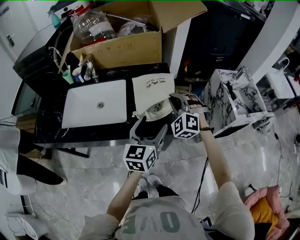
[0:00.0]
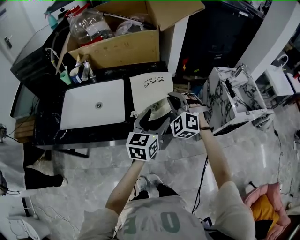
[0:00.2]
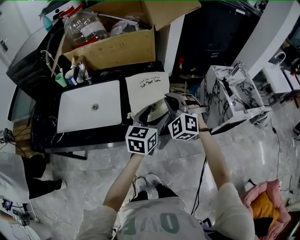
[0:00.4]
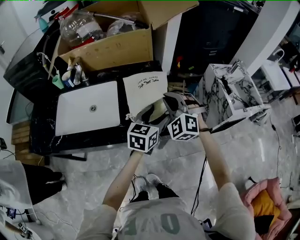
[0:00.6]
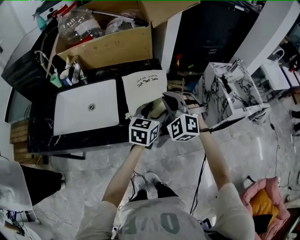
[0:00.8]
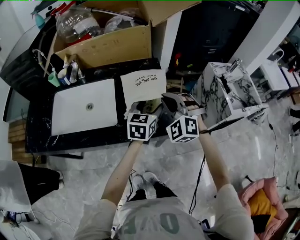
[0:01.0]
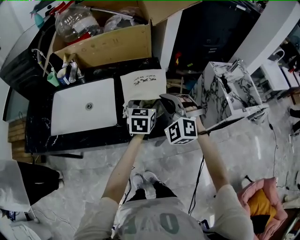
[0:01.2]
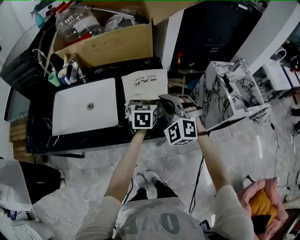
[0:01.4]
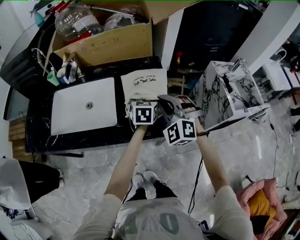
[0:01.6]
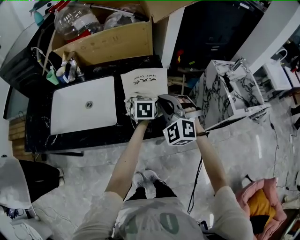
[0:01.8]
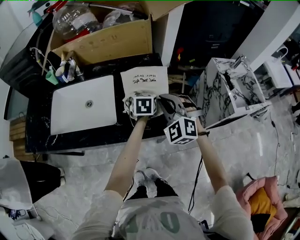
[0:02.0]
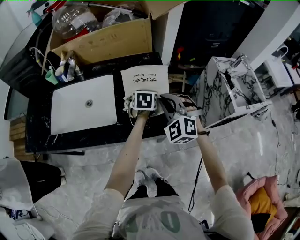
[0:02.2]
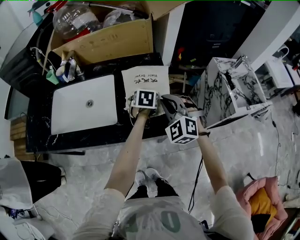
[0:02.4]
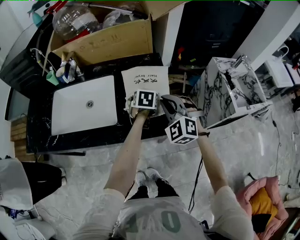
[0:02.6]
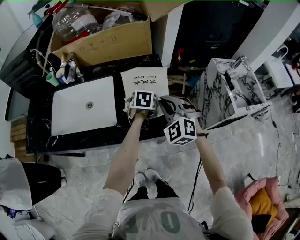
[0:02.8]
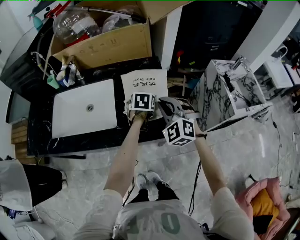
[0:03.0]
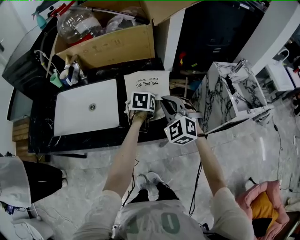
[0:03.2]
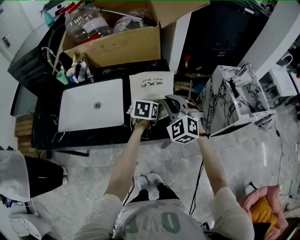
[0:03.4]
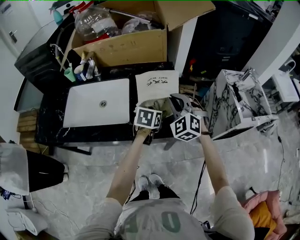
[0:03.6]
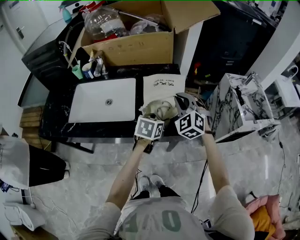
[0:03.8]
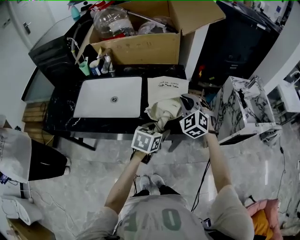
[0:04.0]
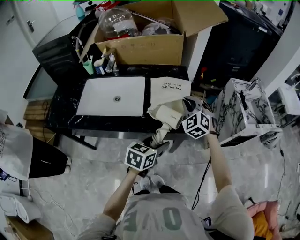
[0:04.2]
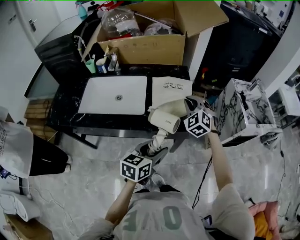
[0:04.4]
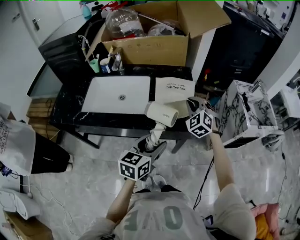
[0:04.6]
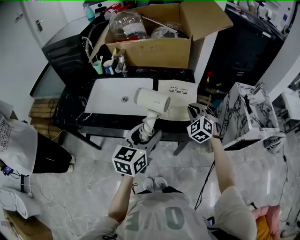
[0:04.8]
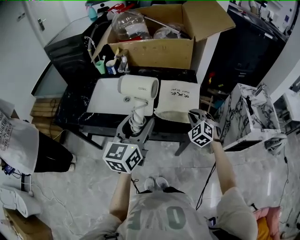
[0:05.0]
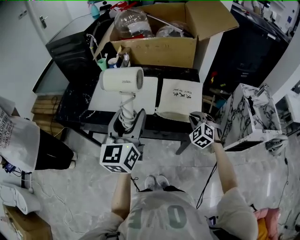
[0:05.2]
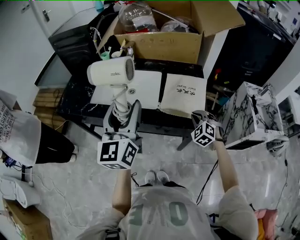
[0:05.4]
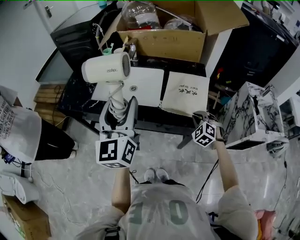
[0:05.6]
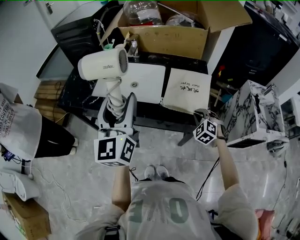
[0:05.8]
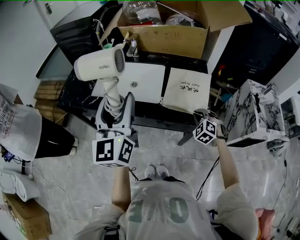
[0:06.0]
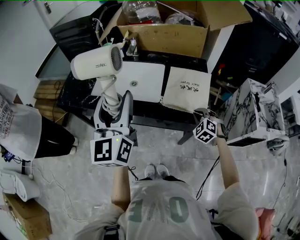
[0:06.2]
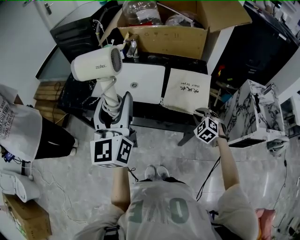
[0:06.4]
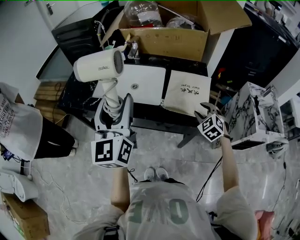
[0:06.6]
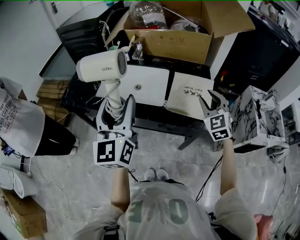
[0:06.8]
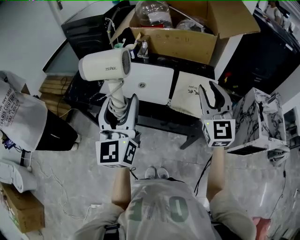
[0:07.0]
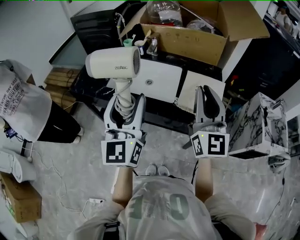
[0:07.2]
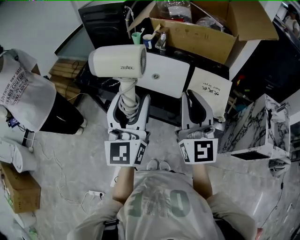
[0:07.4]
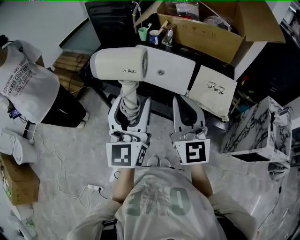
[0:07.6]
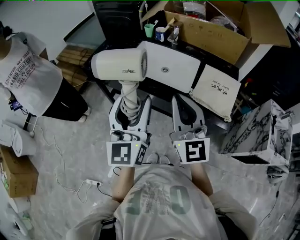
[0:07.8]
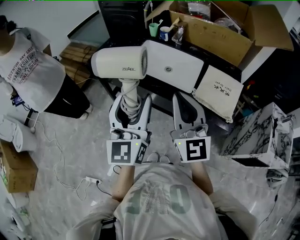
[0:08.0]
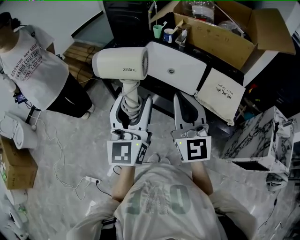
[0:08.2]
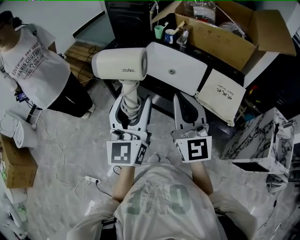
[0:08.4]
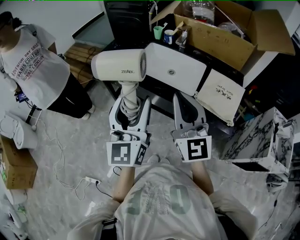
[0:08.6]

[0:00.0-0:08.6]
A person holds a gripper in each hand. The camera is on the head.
0:00.0 to 0:01.4: The left gripper moves forward and downward, about 20 cm, and swivels approximately 20 degrees.
0:01.4 to 0:02.8: The left gripper travels downward by some 5 cm, and rotates approximately 20 degrees.
0:02.8 to 0:04.4: The left gripper shifts roughly 30 cm backward, and changes its angle by about 30 degrees.
0:04.4 to 0:05.8: The right gripper heads downward, covering about 10 cm, while the left gripper shifts roughly 20 cm upward, and points its fingers about 30 degrees further upward.
0:05.8 to 0:07.2: The right gripper is displaced upward by some 30 cm, and points its fingers roughly 60 degrees further upward.
0:07.2 to 0:08.6: The left gripper heads to the left, covering about 5 cm; the right gripper heads to the left, covering approximately 15 cm, and changes its angle by roughly 20 degrees.

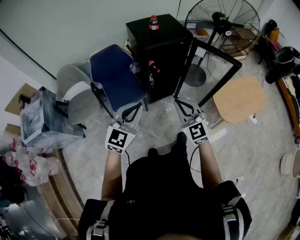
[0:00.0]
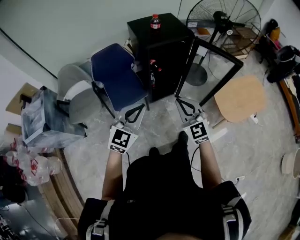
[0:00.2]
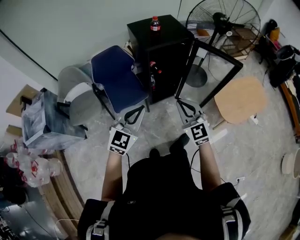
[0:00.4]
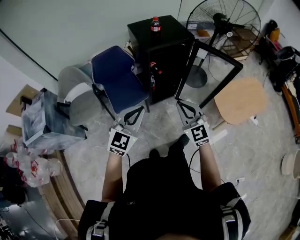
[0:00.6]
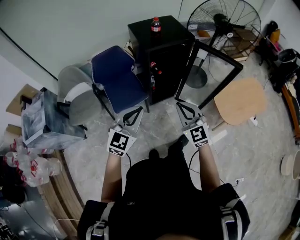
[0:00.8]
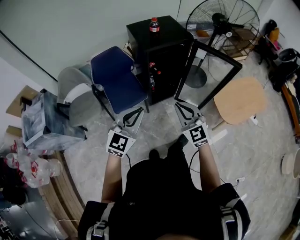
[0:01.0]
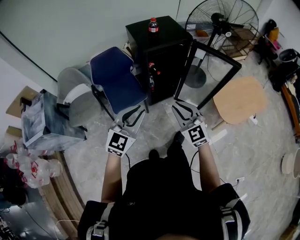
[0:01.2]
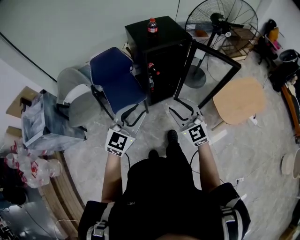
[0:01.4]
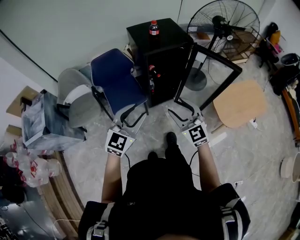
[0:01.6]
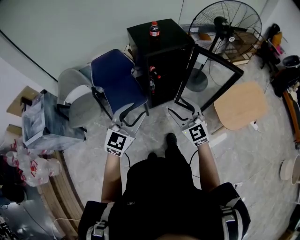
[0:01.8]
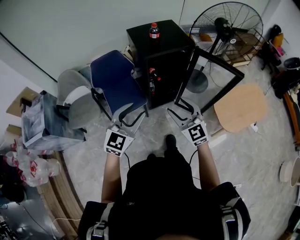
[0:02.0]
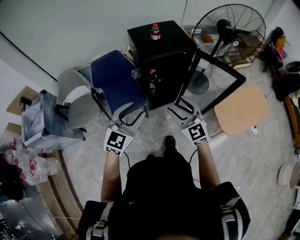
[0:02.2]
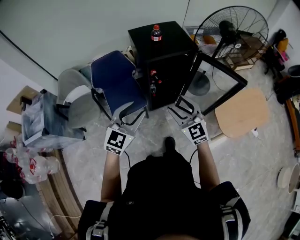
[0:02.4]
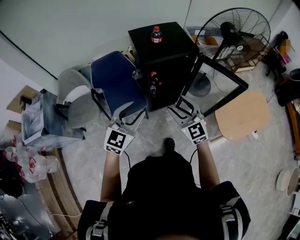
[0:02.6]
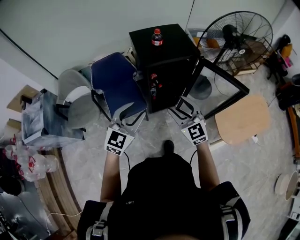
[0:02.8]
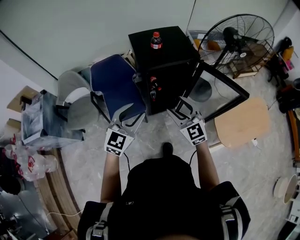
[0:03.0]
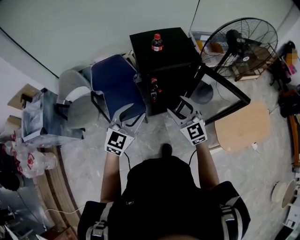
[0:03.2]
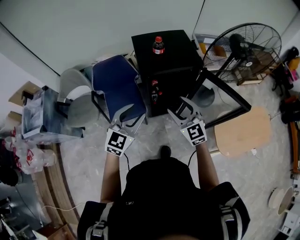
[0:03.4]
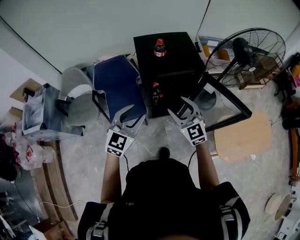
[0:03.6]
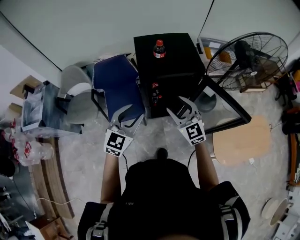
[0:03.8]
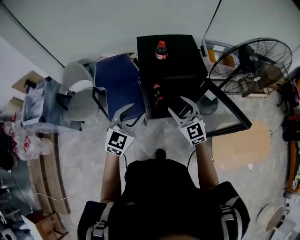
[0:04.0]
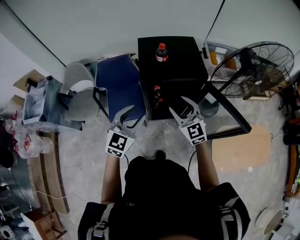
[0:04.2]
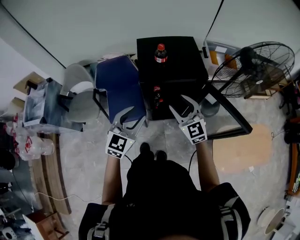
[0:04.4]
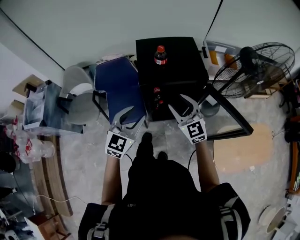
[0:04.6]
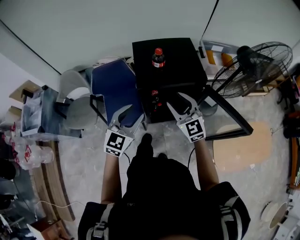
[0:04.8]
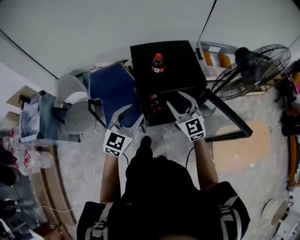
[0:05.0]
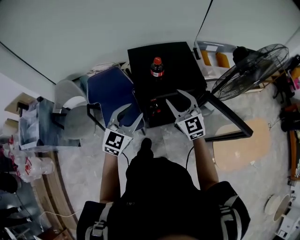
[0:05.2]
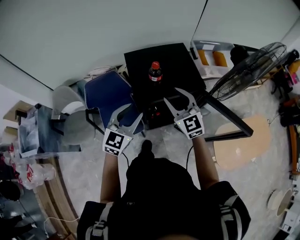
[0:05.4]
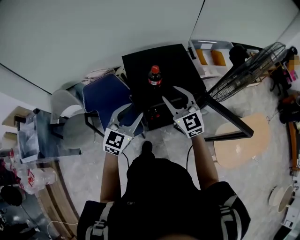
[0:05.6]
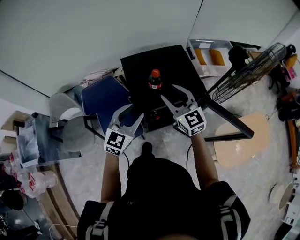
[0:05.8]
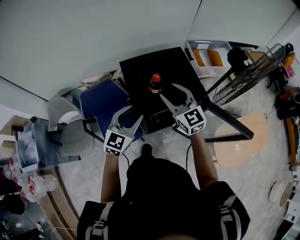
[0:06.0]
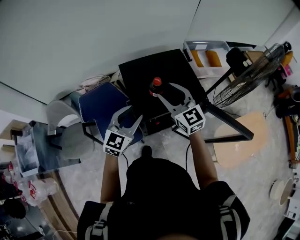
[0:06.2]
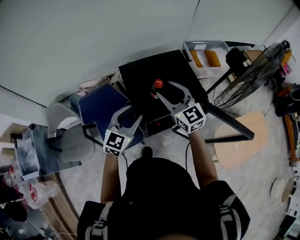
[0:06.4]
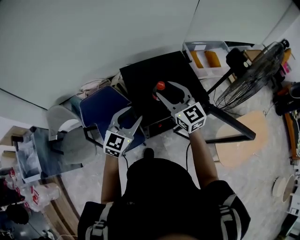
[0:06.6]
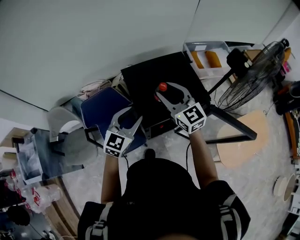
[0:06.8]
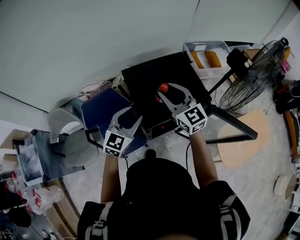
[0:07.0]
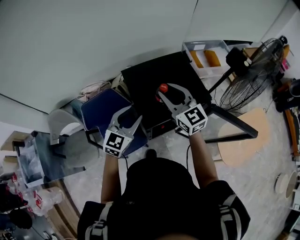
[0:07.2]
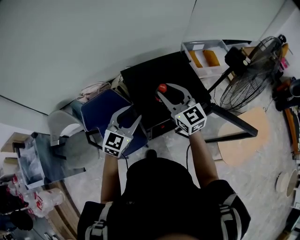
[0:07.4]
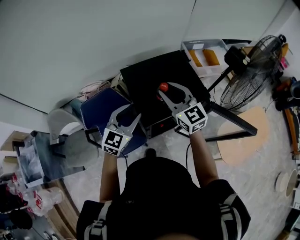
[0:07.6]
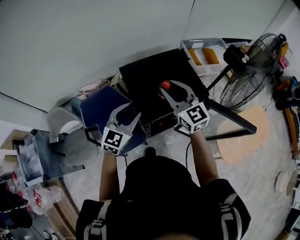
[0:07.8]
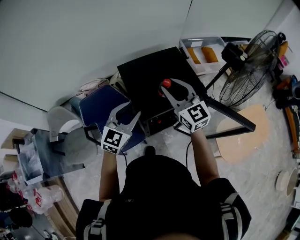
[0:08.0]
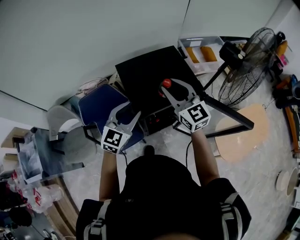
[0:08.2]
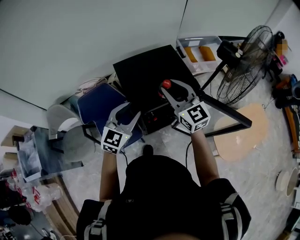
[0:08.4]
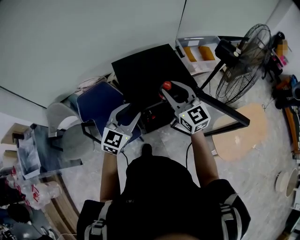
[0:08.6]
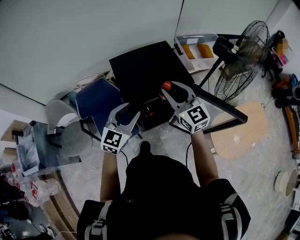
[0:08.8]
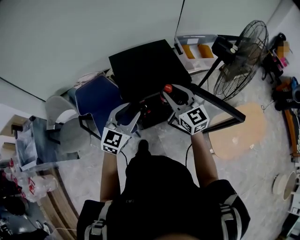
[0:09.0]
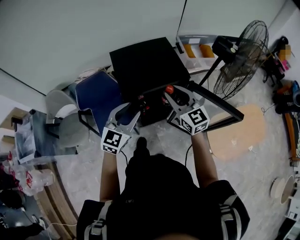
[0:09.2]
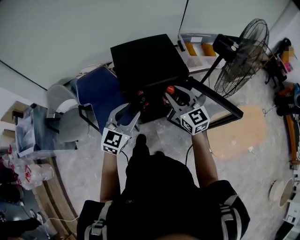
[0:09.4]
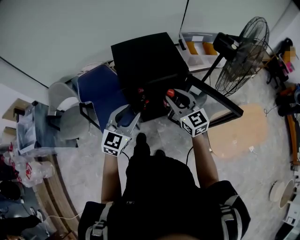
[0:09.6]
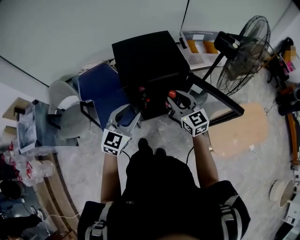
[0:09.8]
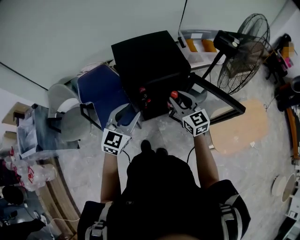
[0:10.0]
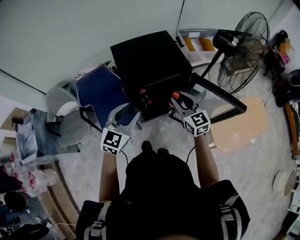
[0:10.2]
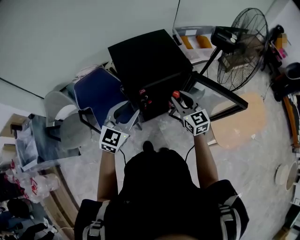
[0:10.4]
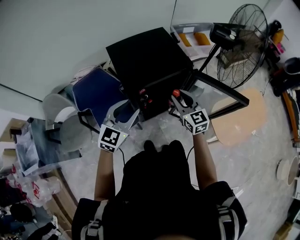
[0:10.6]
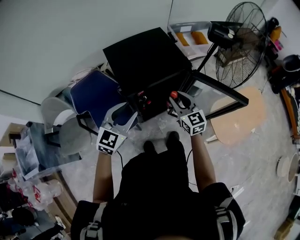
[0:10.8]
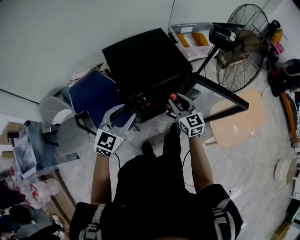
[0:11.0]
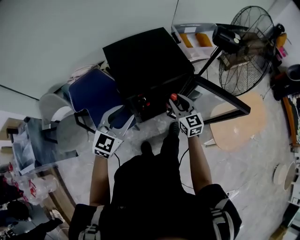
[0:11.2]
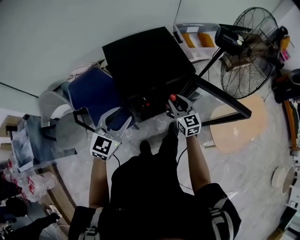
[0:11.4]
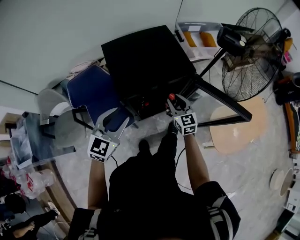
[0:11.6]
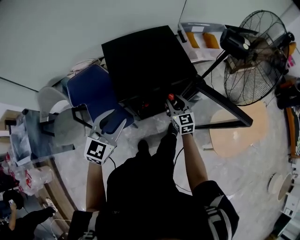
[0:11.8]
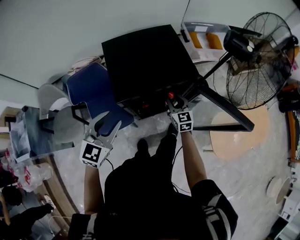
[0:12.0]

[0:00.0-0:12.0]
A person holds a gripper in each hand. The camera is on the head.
0:00.0 to 0:01.6: The right gripper opens up, while the left gripper opens.
0:01.6 to 0:03.0: The two grippers go about 15 cm forward.
0:03.0 to 0:04.4: The right gripper shifts approximately 10 cm forward. Meanwhile the left gripper moves forward, approximately 10 cm.
0:04.4 to 0:06.0: Both grippers travel together forward, about 20 cm.
0:06.0 to 0:07.6: The left gripper changes place by roughly 5 cm.
0:07.6 to 0:09.0: The right gripper is displaced to the right and backward by approximately 15 cm. Meanwhile the left gripper travels backward and to the right by approximately 15 cm.
0:09.0 to 0:10.4: The right gripper travels downward by about 10 cm.
0:10.4 to 0:12.0: The left gripper moves approximately 5 cm. The right gripper shifts roughly 20 cm downward and forward.

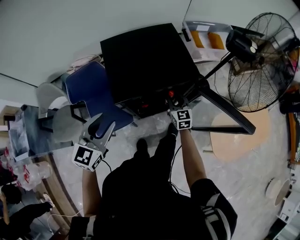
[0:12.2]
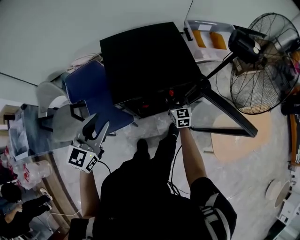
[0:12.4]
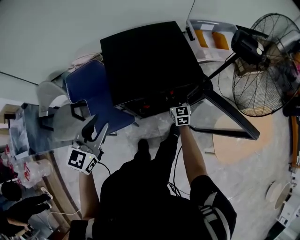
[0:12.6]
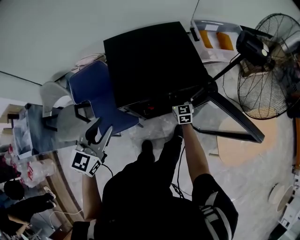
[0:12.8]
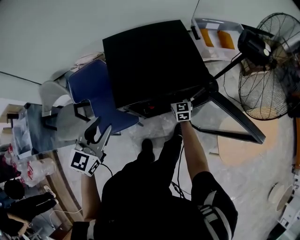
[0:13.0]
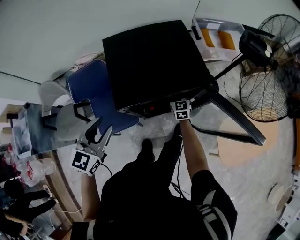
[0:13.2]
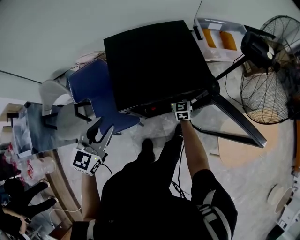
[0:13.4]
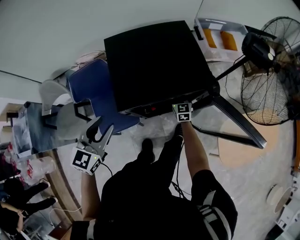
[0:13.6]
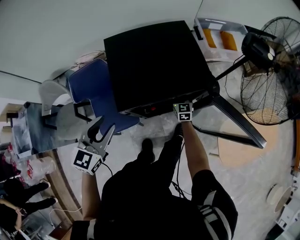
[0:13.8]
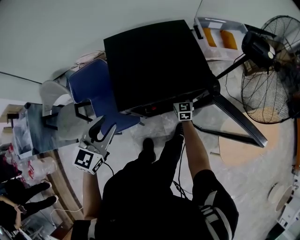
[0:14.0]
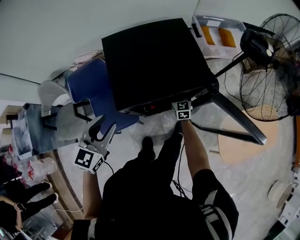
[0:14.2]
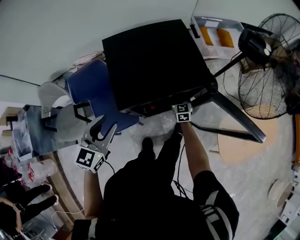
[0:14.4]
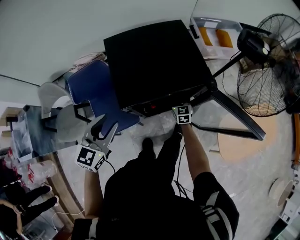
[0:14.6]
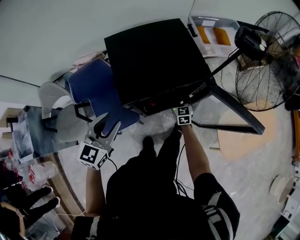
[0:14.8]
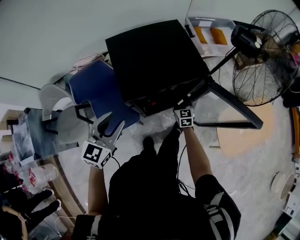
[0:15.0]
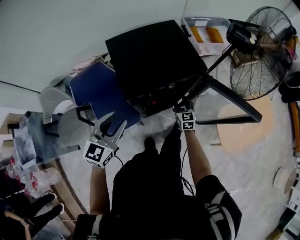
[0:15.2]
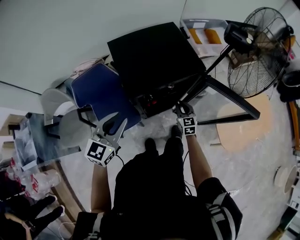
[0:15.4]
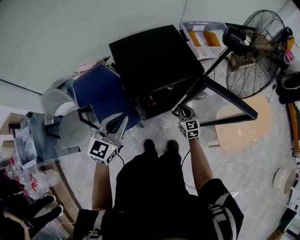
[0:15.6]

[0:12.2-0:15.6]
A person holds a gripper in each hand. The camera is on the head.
0:12.2 to 0:13.8: The right gripper is displaced downward and forward by some 10 cm.
0:13.8 to 0:15.6: The right gripper is displaced backward and upward by roughly 20 cm, and closes up. The left gripper shifts by some 5 cm, and closes up.
